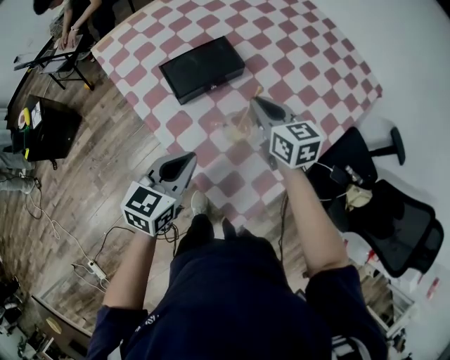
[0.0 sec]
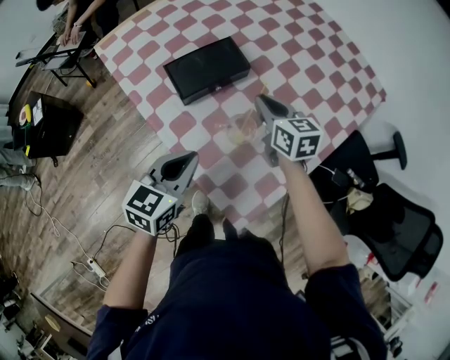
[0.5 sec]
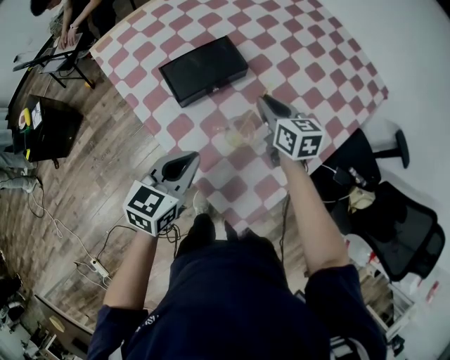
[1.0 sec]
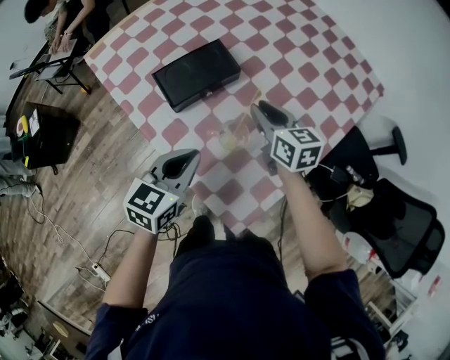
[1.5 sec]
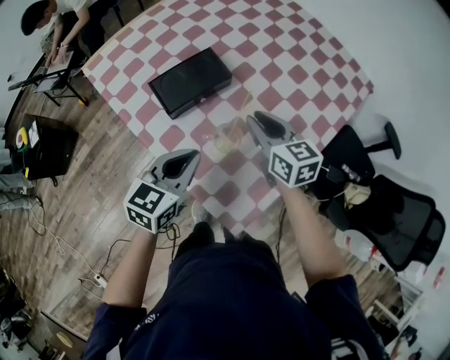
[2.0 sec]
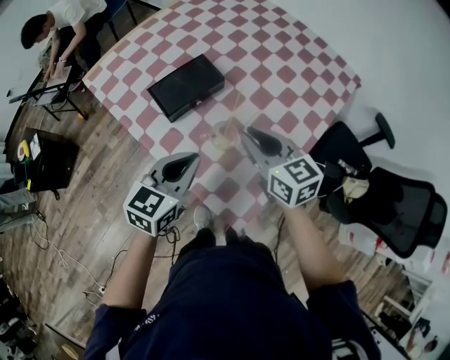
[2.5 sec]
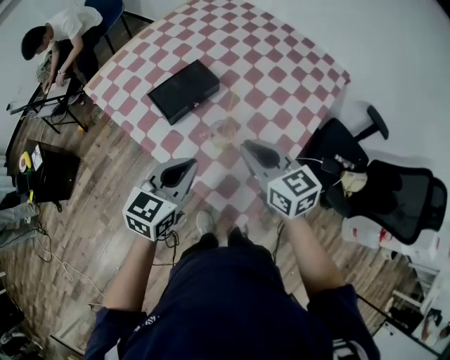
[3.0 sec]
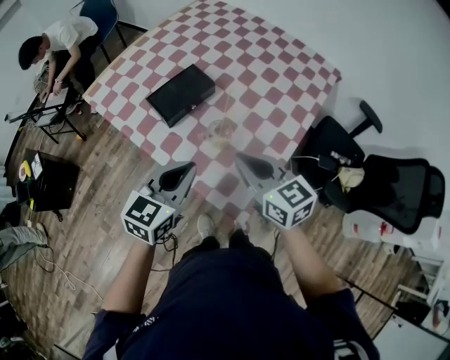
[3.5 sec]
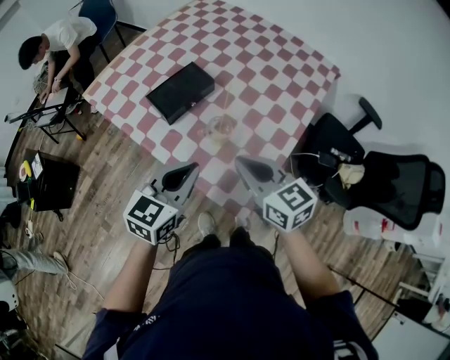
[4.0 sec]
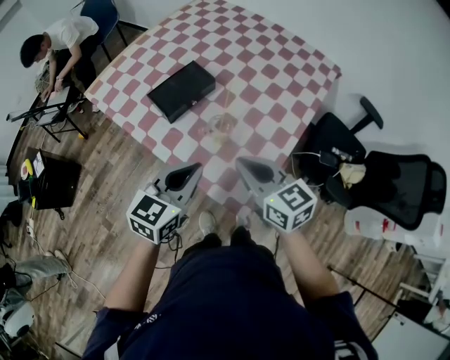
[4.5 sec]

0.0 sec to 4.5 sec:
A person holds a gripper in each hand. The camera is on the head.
0.0 sec to 2.0 sec: The left gripper ends up about 5 cm from where it was.
2.0 sec to 4.5 sec: The right gripper heads backward and upward, covering roughly 20 cm; the left gripper travels backward and upward by some 15 cm.

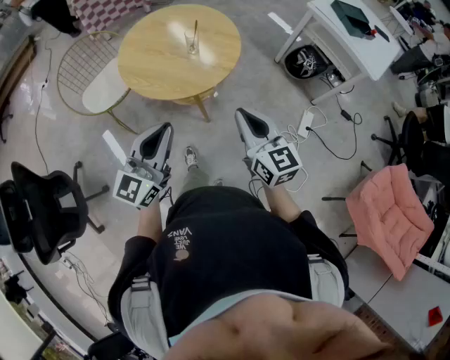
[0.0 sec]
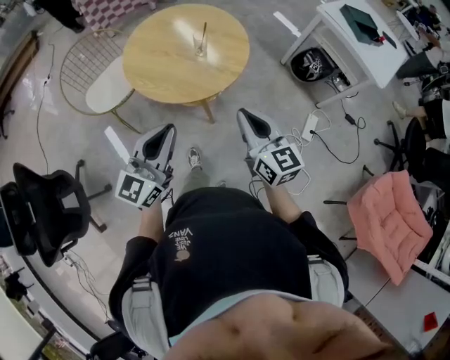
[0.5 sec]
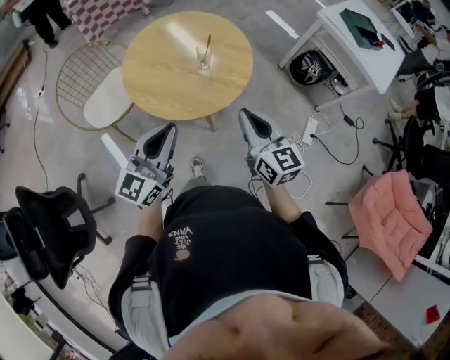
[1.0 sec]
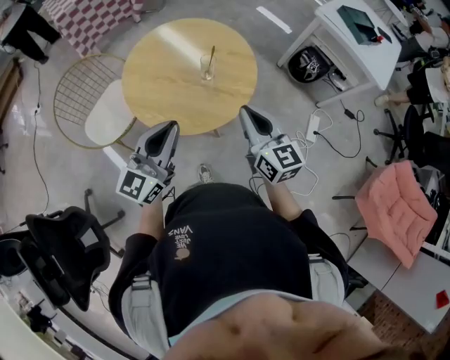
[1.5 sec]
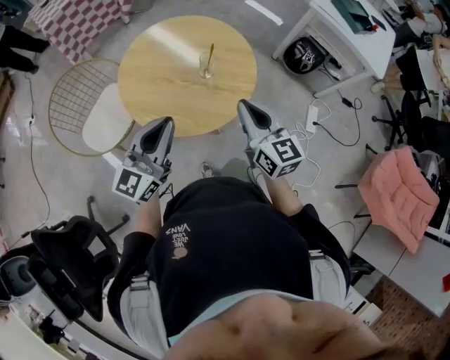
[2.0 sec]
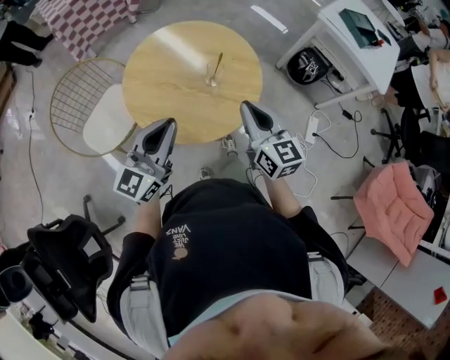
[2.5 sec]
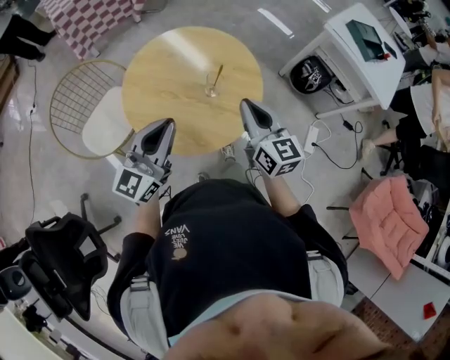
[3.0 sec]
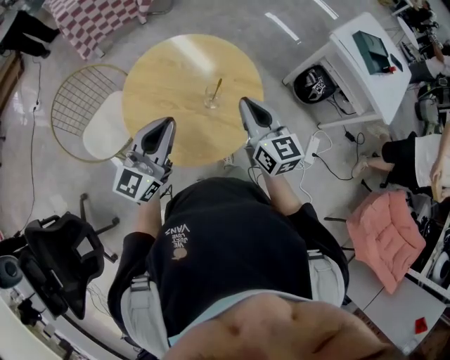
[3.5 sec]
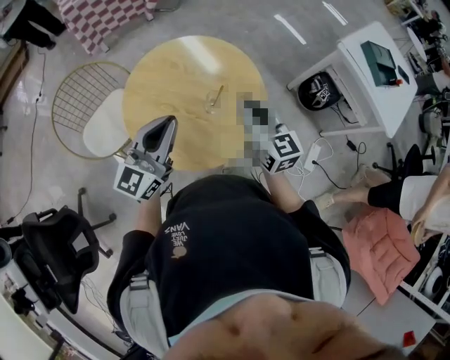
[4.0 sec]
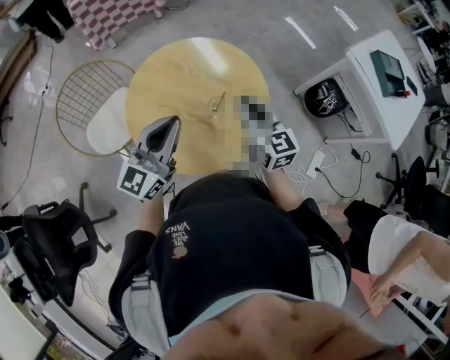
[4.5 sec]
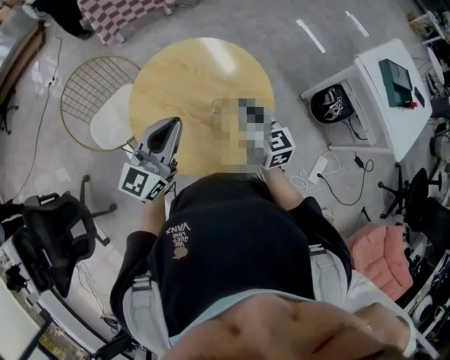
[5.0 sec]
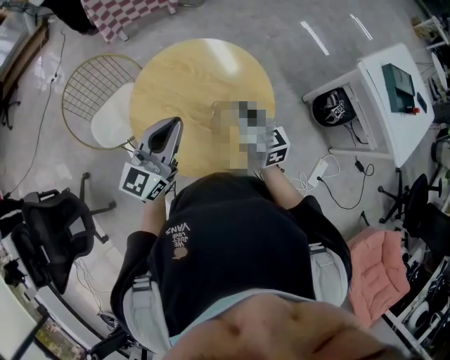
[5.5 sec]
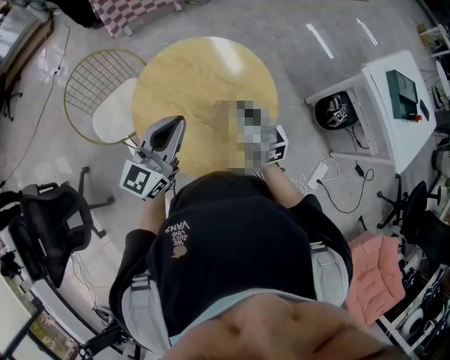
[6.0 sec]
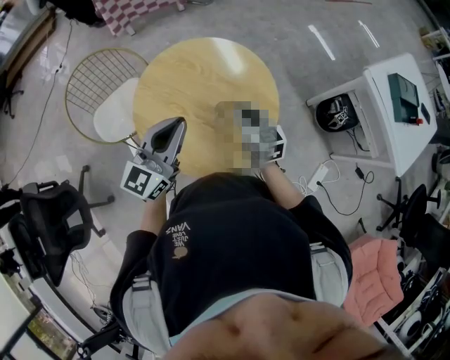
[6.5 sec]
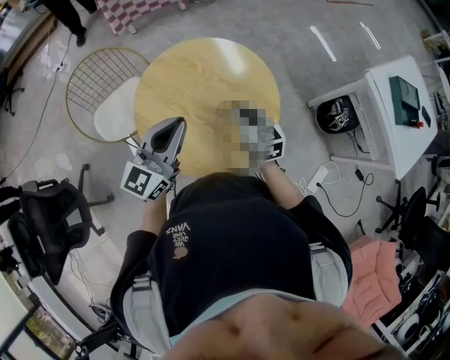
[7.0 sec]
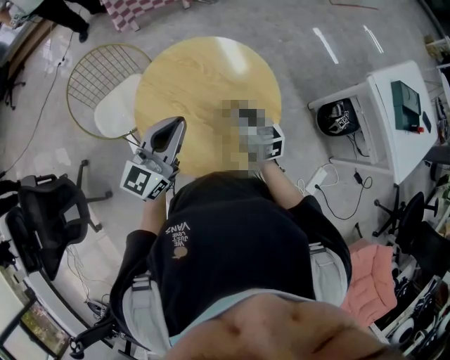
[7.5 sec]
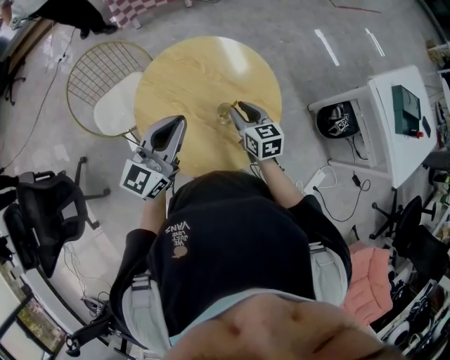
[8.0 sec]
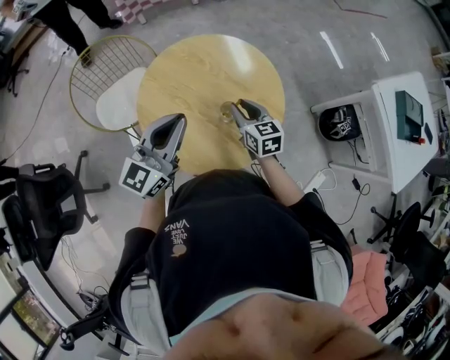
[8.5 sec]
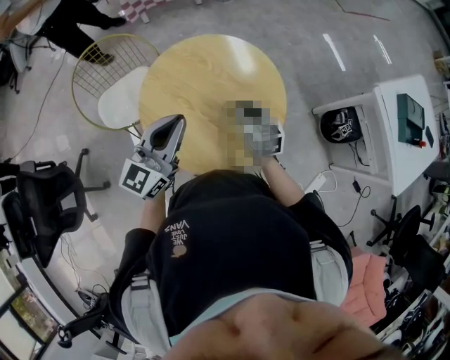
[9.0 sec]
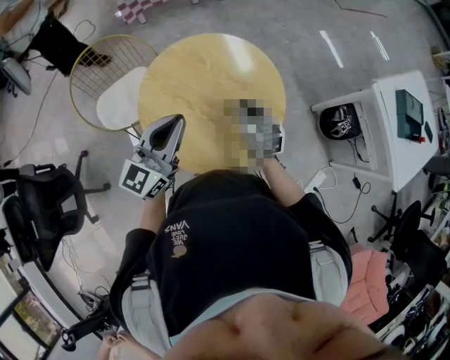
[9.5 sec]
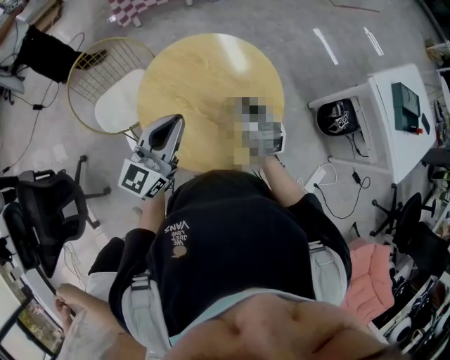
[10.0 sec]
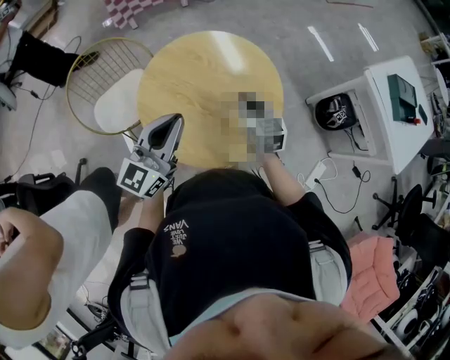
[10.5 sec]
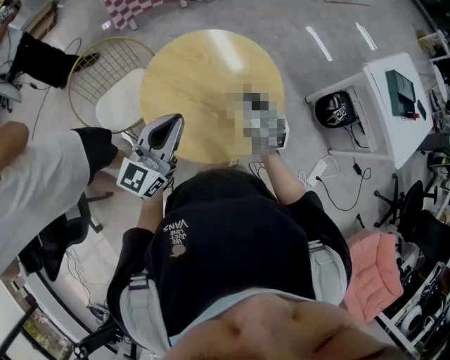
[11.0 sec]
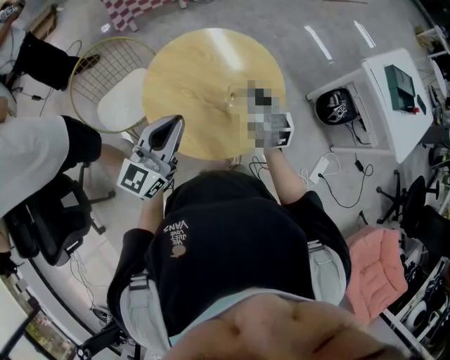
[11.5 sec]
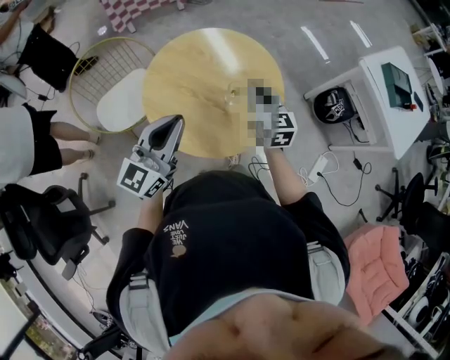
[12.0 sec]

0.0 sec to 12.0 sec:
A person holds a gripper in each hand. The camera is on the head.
0.0 sec to 2.0 sec: Both grippers travel together forward and to the left, some 25 cm.
2.0 sec to 4.0 sec: Both grippers travel together forward, roughly 15 cm.
4.0 sec to 6.0 sec: The right gripper moves downward and forward, approximately 10 cm.
6.0 sec to 8.0 sec: The right gripper opens its fingers.
8.0 sec to 10.0 sec: The right gripper closes.
10.0 sec to 12.0 sec: The left gripper travels backward by roughly 10 cm, while the right gripper is displaced upward by about 5 cm.

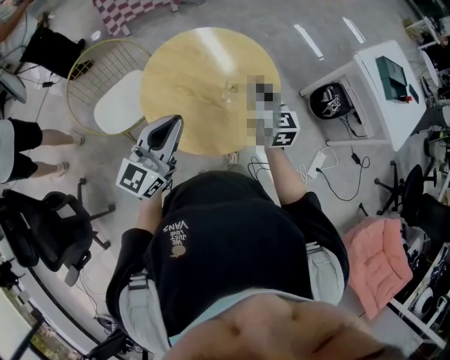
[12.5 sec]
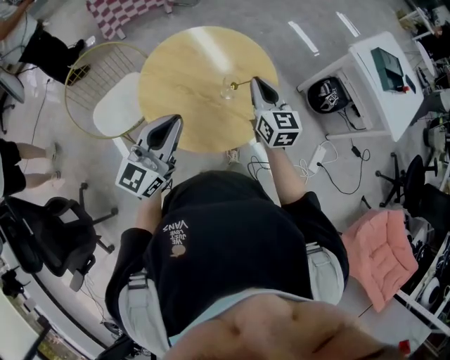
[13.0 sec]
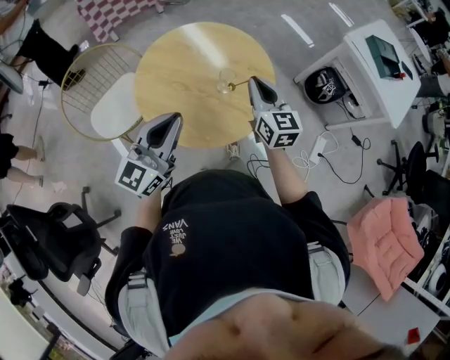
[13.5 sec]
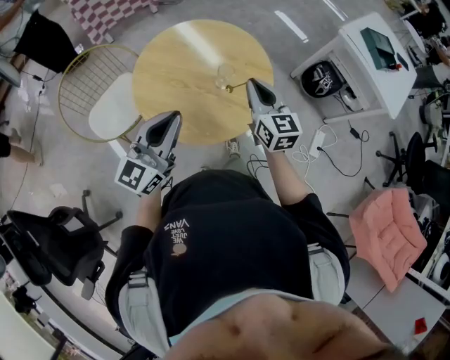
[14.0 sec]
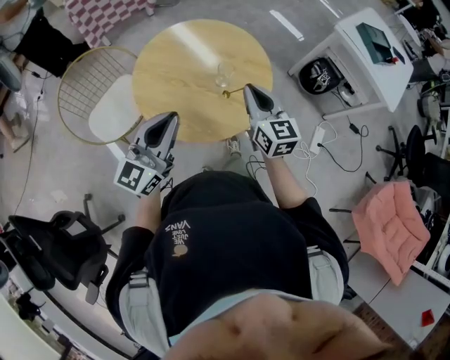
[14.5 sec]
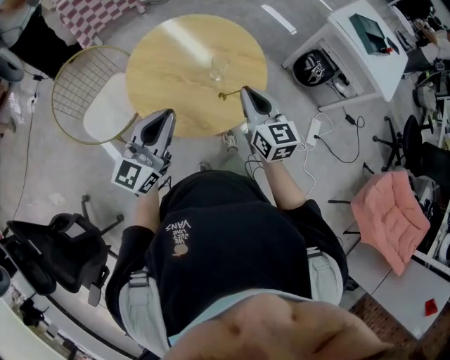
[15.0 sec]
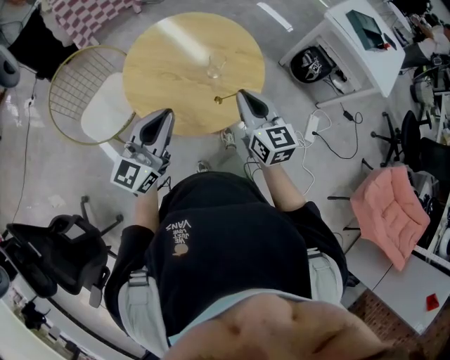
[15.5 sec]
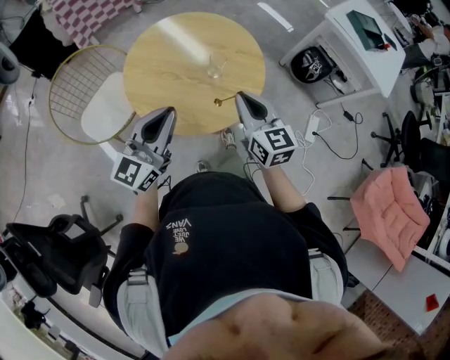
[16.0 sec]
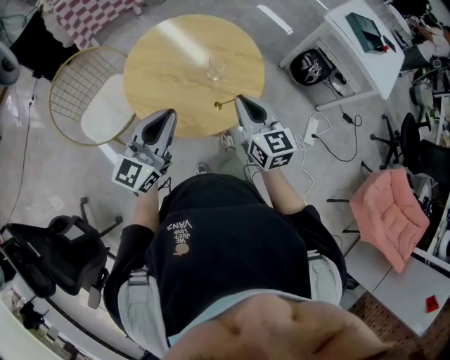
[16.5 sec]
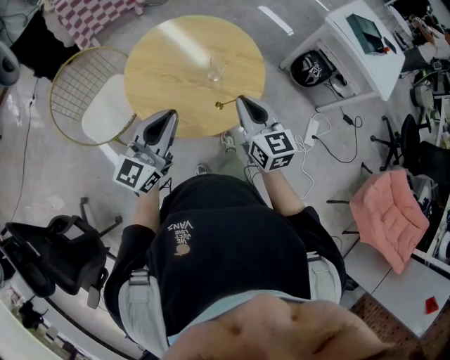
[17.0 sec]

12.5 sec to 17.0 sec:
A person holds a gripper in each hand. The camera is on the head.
12.5 sec to 14.5 sec: The right gripper shifts some 10 cm backward.
14.5 sec to 17.0 sec: The right gripper moves backward, approximately 5 cm.

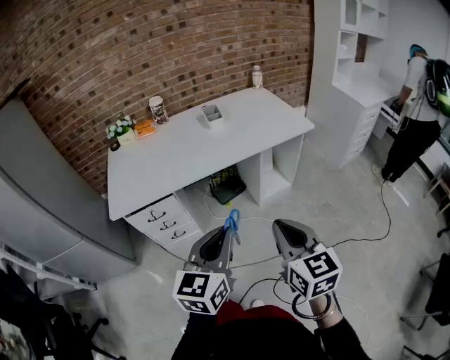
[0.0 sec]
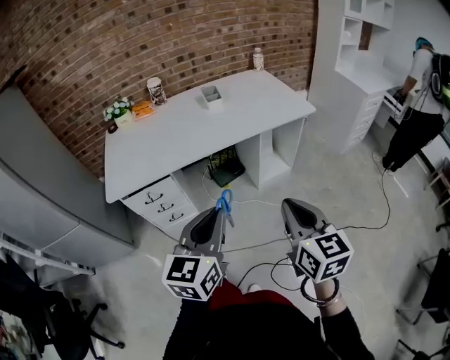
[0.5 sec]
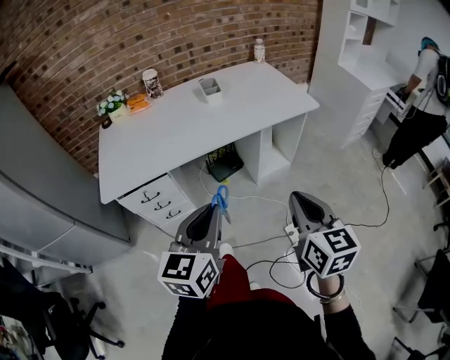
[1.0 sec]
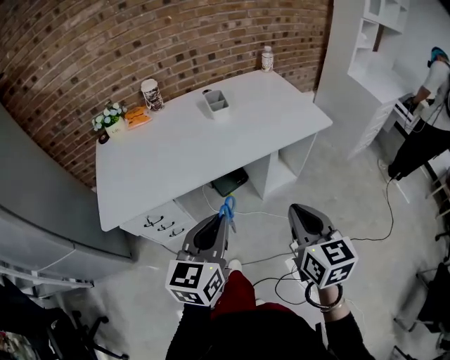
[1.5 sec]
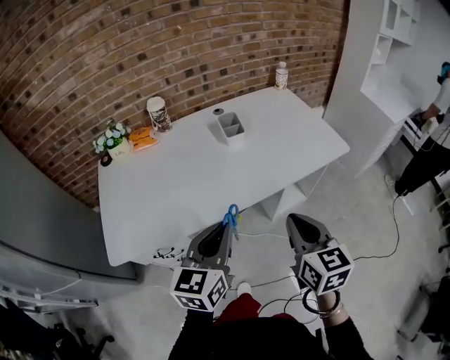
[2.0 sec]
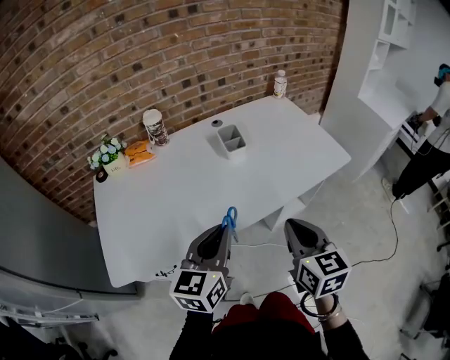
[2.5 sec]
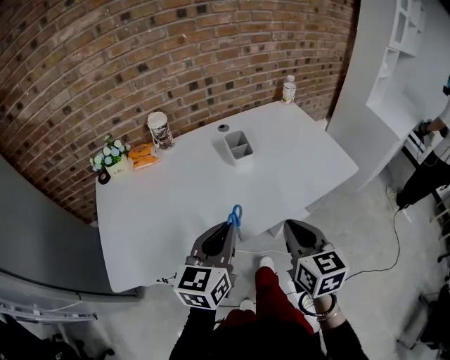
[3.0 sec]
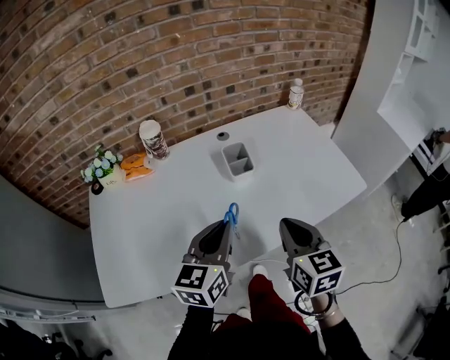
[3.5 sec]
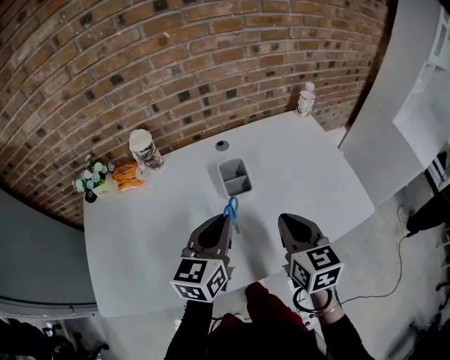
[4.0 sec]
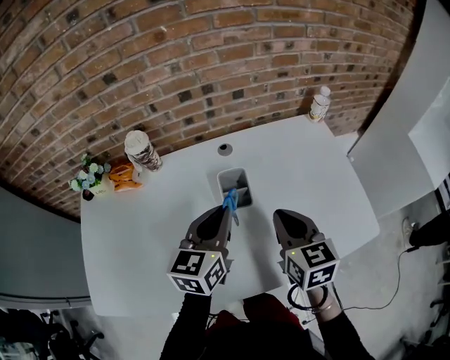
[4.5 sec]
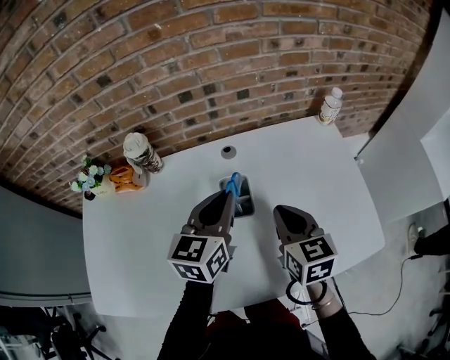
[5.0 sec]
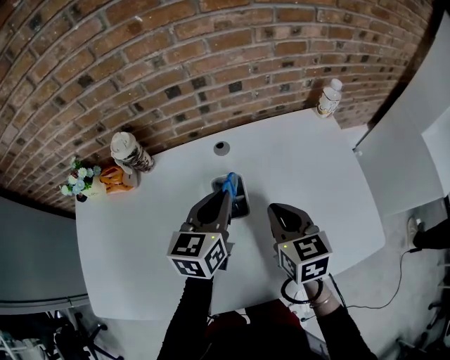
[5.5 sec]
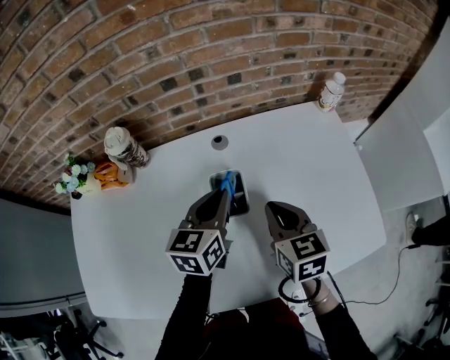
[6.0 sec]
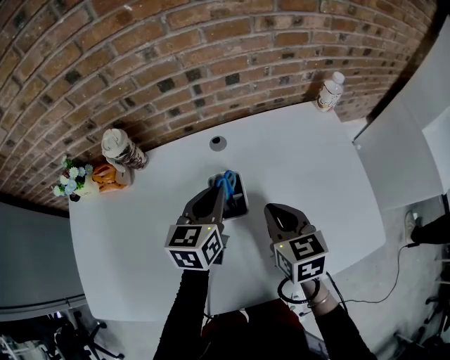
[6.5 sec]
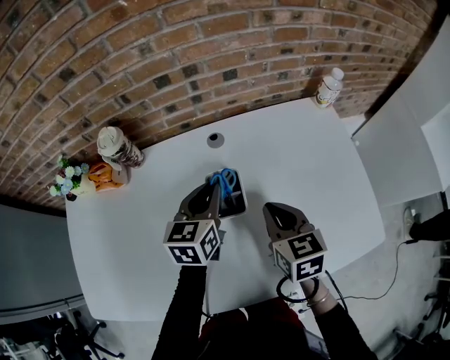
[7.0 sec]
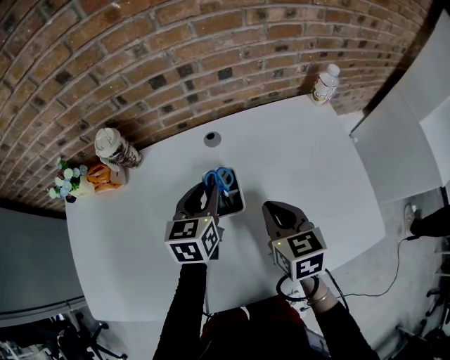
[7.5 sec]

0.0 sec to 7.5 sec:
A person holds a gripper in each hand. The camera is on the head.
0.0 sec to 2.0 sec: The two grippers go approximately 25 cm forward.
2.0 sec to 4.0 sec: Both grippers travel together forward, roughly 30 cm.
4.0 sec to 5.5 sec: Both grippers travel together forward, roughly 15 cm.
5.5 sec to 7.5 sec: The left gripper travels downward by roughly 5 cm, and opens.
